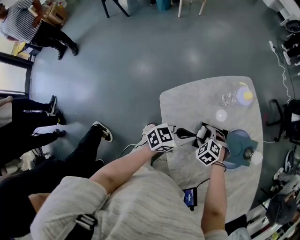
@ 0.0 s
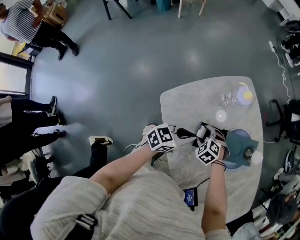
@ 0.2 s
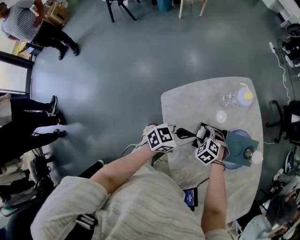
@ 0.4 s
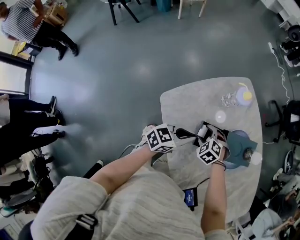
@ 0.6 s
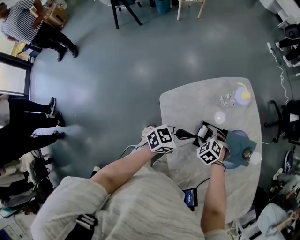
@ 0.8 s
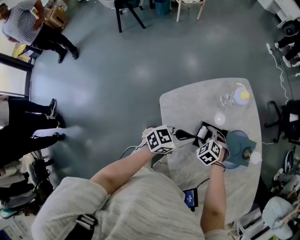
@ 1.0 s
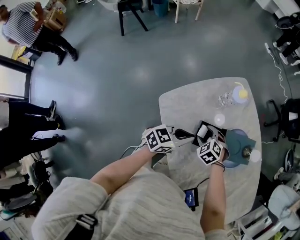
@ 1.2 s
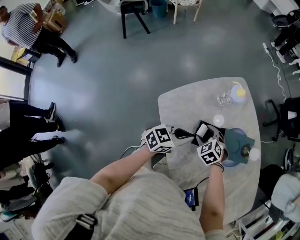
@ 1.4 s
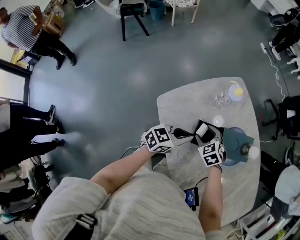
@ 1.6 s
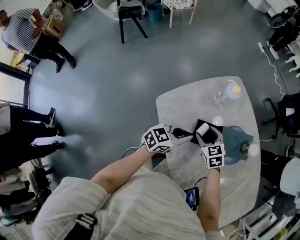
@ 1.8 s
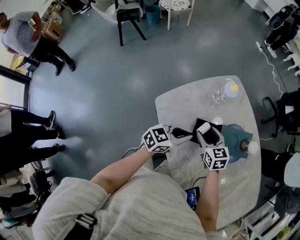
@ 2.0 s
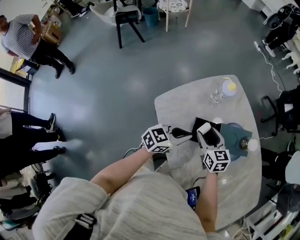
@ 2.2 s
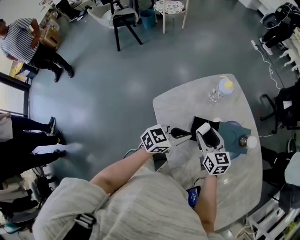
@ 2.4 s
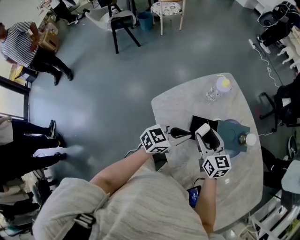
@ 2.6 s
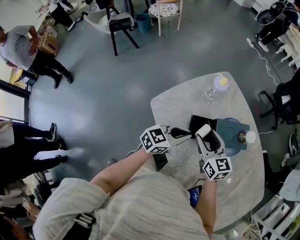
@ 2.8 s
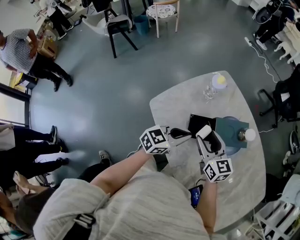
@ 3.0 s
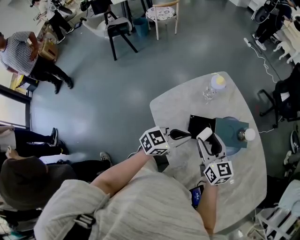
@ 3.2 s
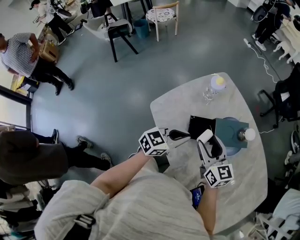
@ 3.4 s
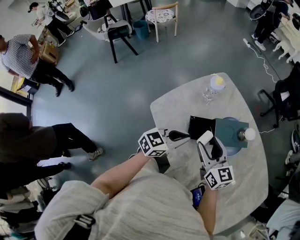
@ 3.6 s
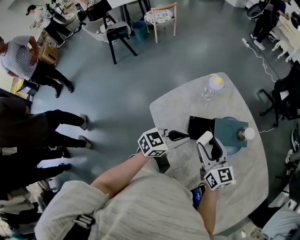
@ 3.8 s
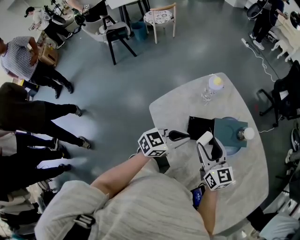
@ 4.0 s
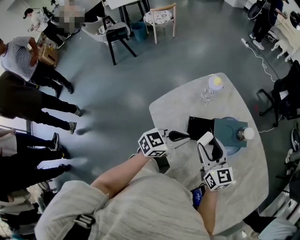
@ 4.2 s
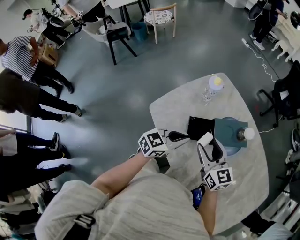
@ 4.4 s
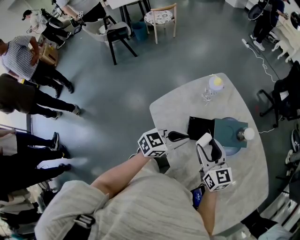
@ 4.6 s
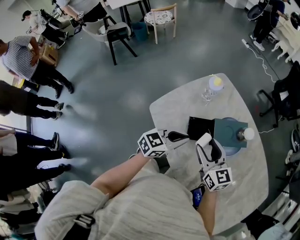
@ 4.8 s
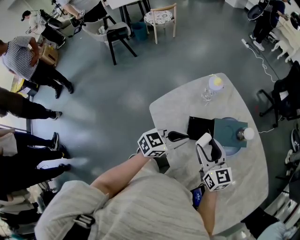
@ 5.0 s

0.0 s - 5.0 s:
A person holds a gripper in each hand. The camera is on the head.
0.0 s - 1.6 s: The right gripper heads upward, covering some 5 cm, and rotates about 30 degrees.
1.6 s - 3.4 s: The right gripper moves upward, roughly 15 cm, and points its fingers approximately 40 degrees further upward; the left gripper travels upward by approximately 5 cm.
3.4 s - 5.0 s: There are only small adjustments of the grippers.

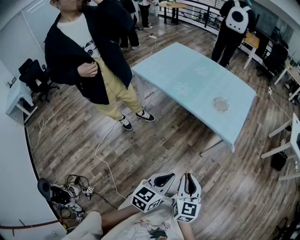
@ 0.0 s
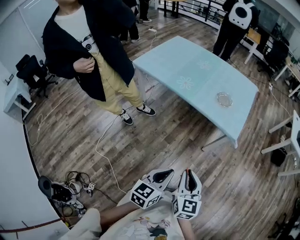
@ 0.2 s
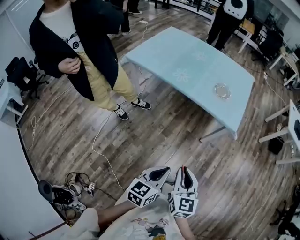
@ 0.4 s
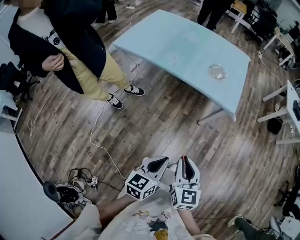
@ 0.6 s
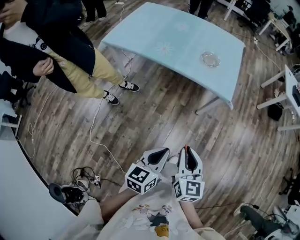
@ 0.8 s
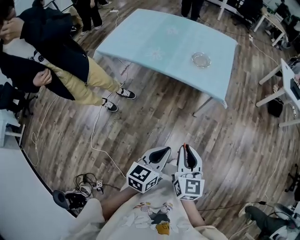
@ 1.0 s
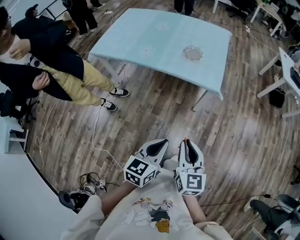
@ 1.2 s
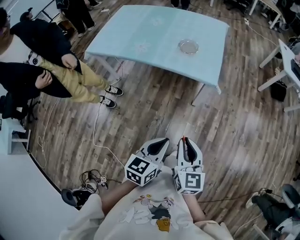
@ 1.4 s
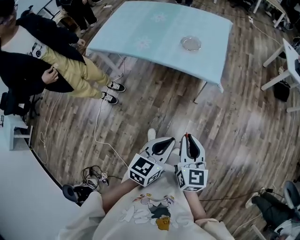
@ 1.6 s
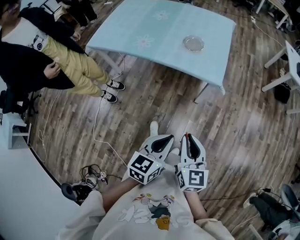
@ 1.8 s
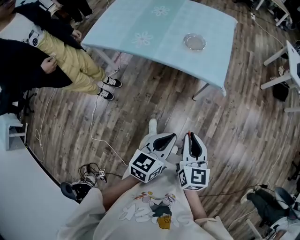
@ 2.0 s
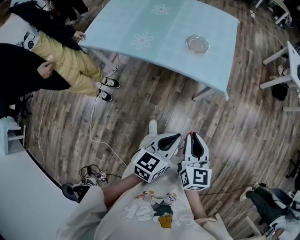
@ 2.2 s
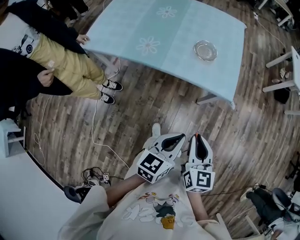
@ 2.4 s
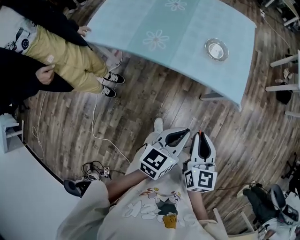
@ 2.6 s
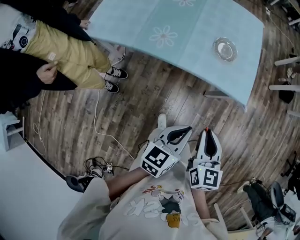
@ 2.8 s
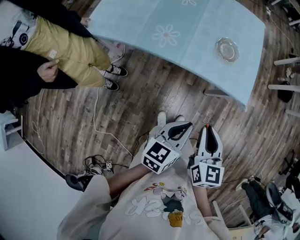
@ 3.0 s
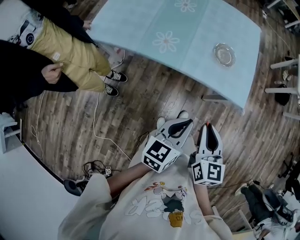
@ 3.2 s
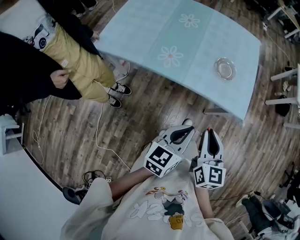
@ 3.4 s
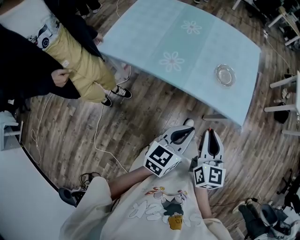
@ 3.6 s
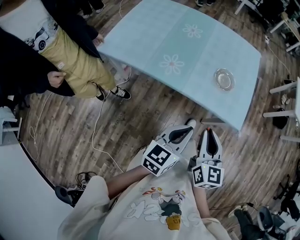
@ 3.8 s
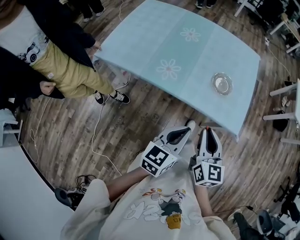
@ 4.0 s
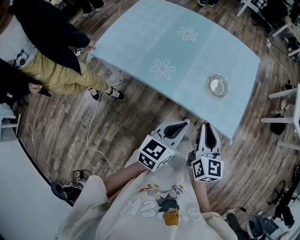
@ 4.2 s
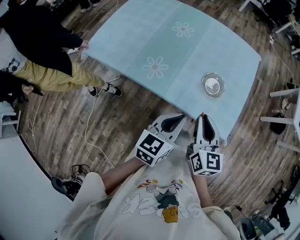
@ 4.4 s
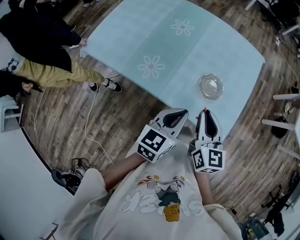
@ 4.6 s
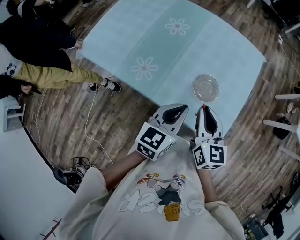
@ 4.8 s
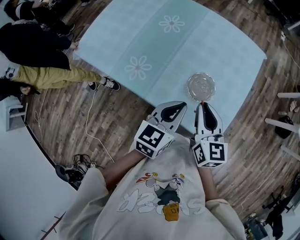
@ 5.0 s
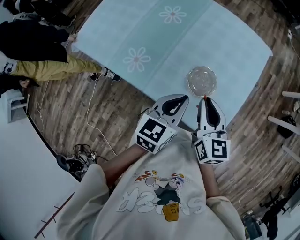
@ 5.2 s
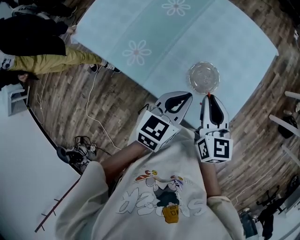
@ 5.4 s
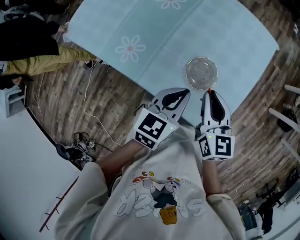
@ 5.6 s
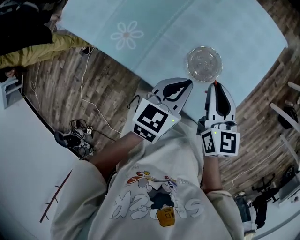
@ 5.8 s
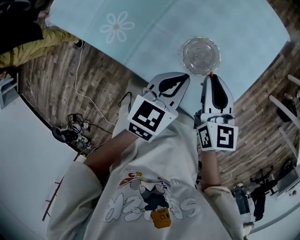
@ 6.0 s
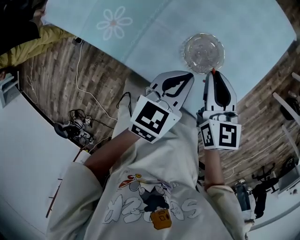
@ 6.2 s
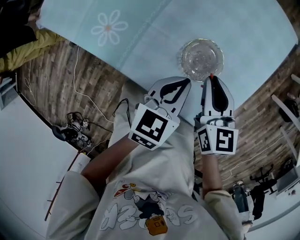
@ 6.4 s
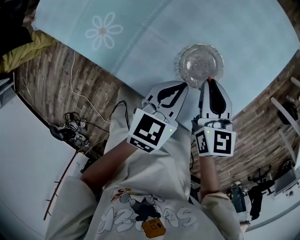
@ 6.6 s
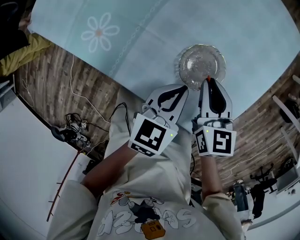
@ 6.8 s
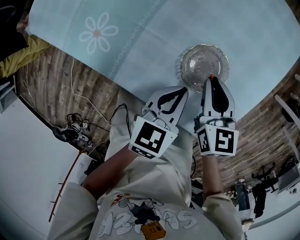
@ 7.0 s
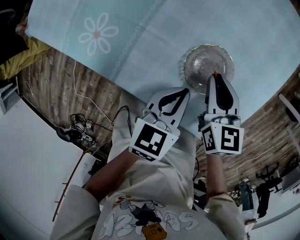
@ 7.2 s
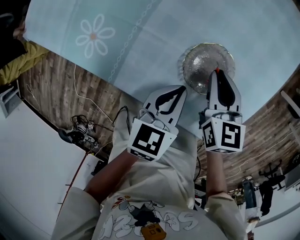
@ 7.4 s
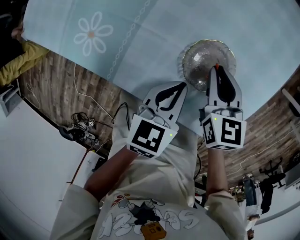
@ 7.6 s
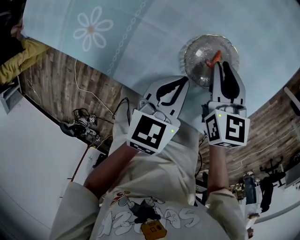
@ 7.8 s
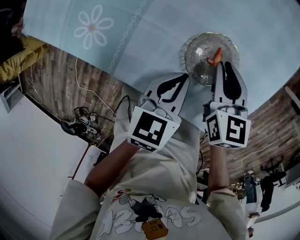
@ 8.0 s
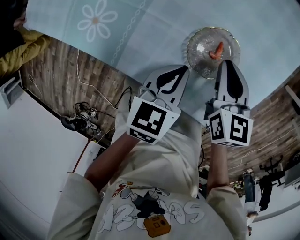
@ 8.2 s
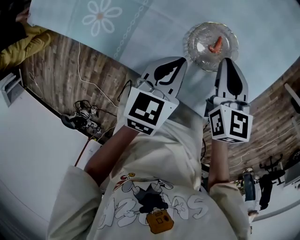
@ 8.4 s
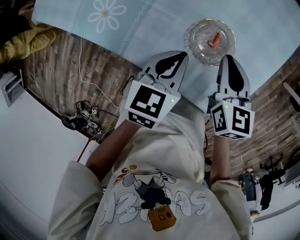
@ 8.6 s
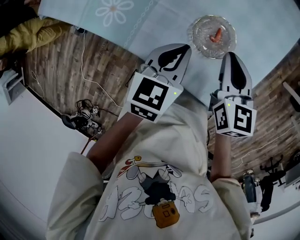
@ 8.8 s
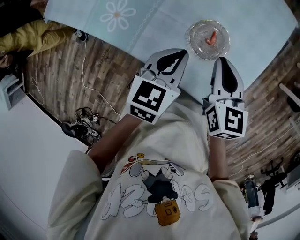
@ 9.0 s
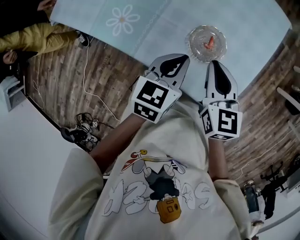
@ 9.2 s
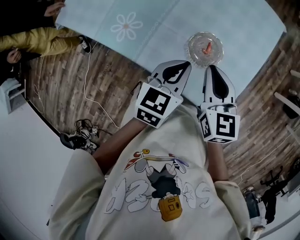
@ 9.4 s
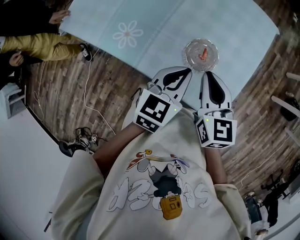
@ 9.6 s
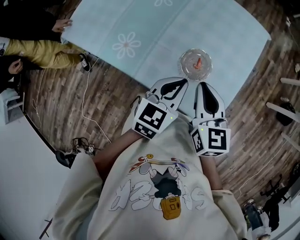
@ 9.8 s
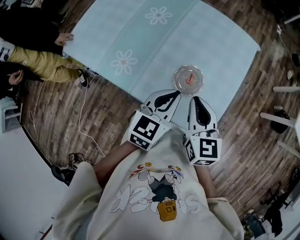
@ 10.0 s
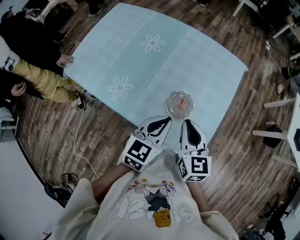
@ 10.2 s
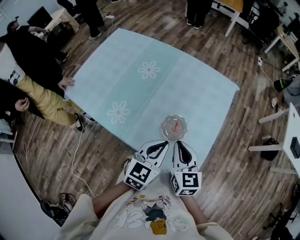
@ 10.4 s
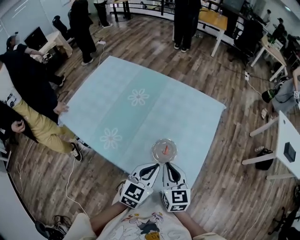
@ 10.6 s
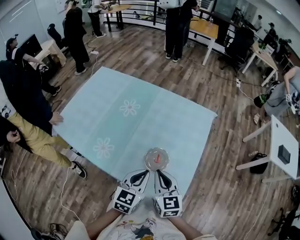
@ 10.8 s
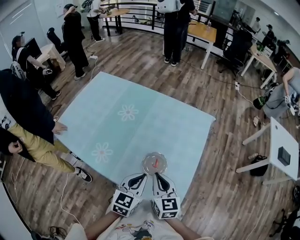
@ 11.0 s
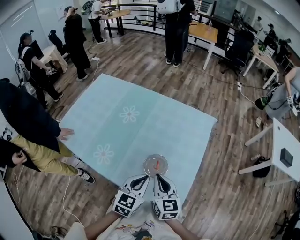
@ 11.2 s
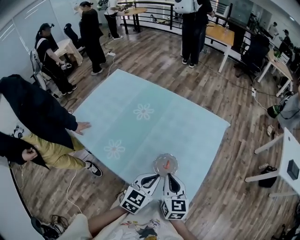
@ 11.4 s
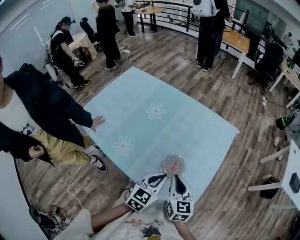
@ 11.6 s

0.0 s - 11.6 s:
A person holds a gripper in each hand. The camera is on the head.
0.0 s - 1.4 s: The left gripper heads to the right and forward, covering some 10 cm. Meanwhile the right gripper shifts roughly 10 cm to the right.
1.4 s - 2.8 s: Both grippers travel together forward and to the left, approximately 30 cm.
2.8 s - 4.4 s: The grippers both shift forward by about 20 cm.
4.4 s - 5.8 s: The two grippers go roughly 25 cm forward, to the right and downward.
5.8 s - 7.2 s: The two grippers go some 15 cm downward.
7.2 s - 8.8 s: The two grippers go roughly 5 cm upward.
8.8 s - 10.2 s: The left gripper travels upward by roughly 15 cm. The right gripper is displaced upward and backward by about 15 cm.
10.2 s - 11.6 s: The grippers make only small movements.

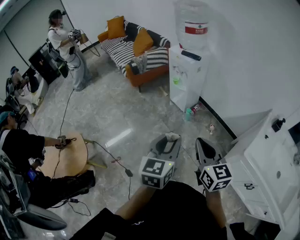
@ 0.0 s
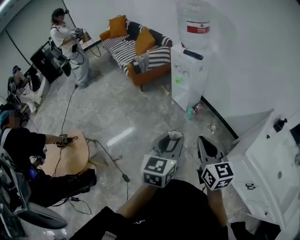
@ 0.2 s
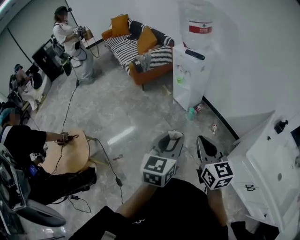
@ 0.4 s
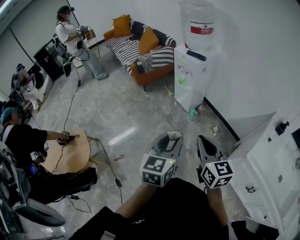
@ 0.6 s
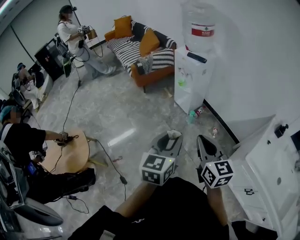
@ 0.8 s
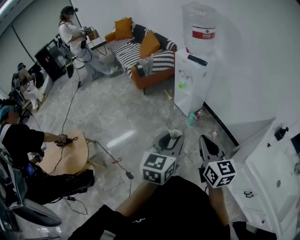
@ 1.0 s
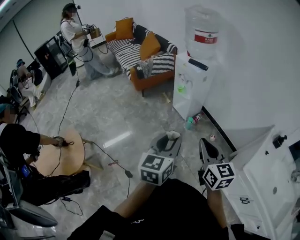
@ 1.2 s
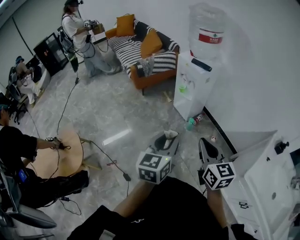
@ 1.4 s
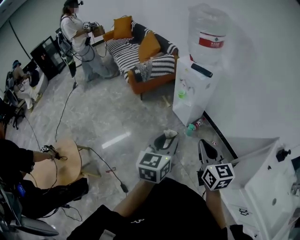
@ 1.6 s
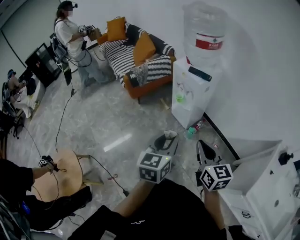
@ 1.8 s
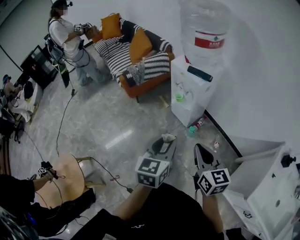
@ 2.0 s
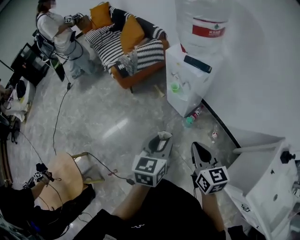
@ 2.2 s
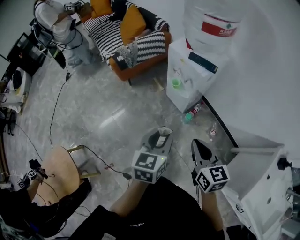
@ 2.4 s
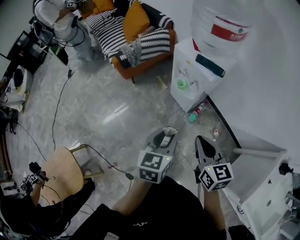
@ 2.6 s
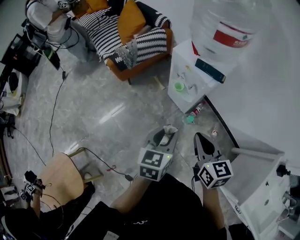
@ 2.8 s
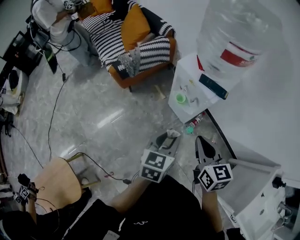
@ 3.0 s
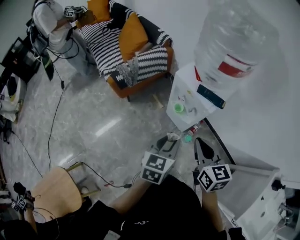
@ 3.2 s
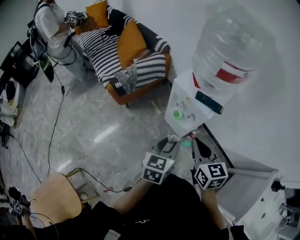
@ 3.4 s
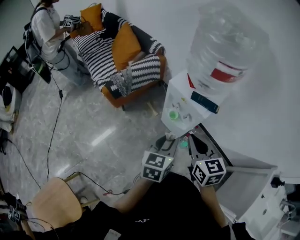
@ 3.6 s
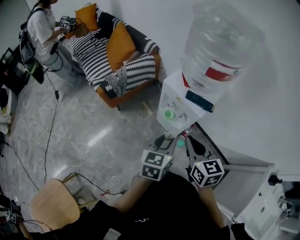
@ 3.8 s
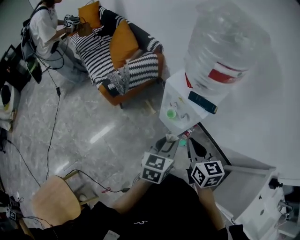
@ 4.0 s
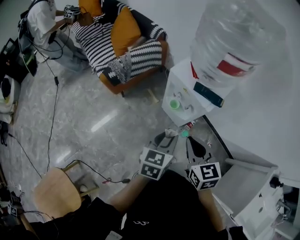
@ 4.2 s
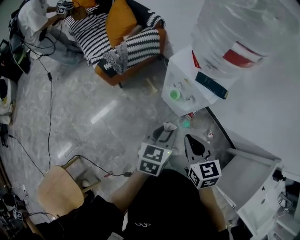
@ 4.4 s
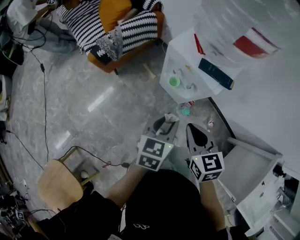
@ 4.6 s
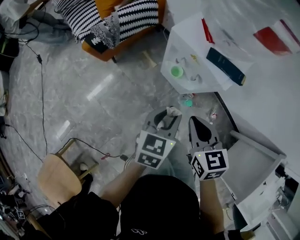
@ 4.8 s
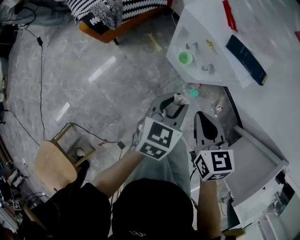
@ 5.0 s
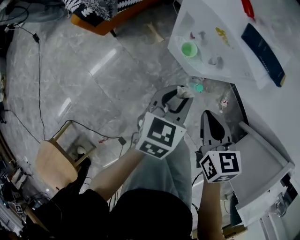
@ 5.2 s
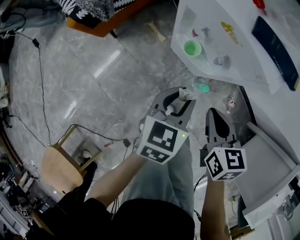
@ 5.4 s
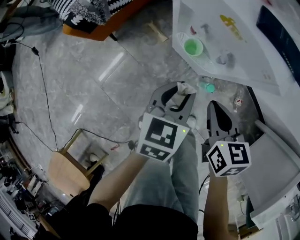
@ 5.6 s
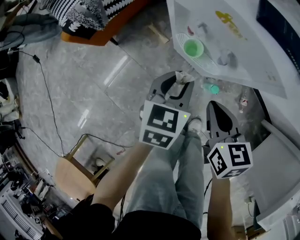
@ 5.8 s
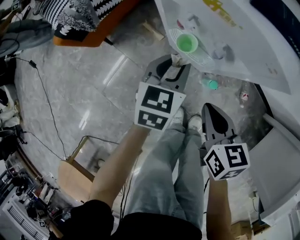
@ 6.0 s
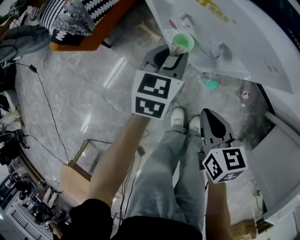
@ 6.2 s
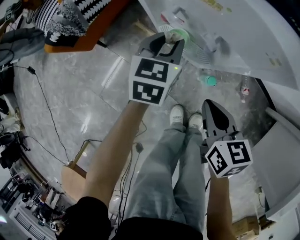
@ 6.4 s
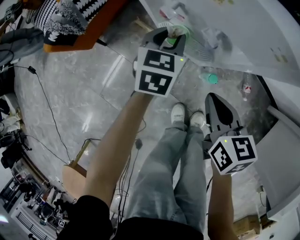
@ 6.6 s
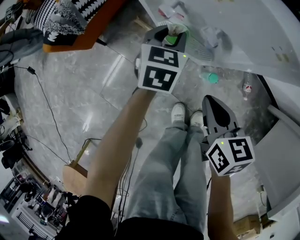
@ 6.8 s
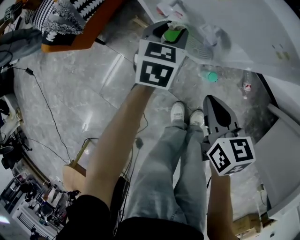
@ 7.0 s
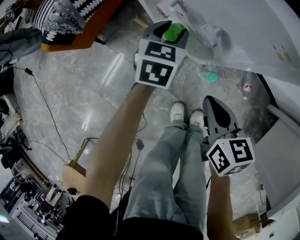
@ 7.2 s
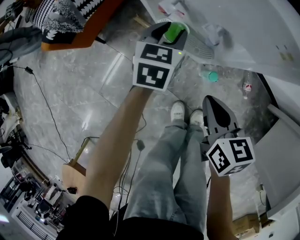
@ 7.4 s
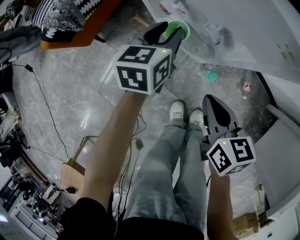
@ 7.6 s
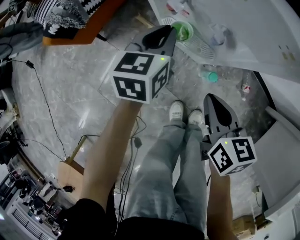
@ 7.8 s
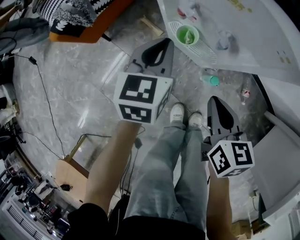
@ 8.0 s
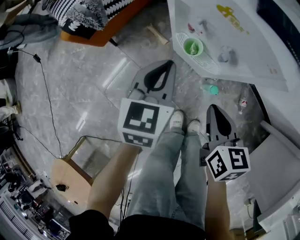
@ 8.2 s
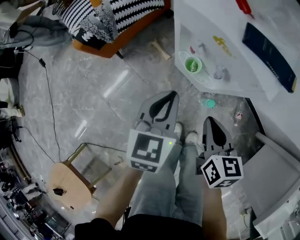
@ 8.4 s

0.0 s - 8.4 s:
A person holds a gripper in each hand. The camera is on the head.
0.0 s - 1.4 s: The grippers both shift forward by about 10 cm.
1.4 s - 2.8 s: The two grippers go about 35 cm forward.
2.8 s - 4.2 s: The two grippers go about 10 cm forward.
4.2 s - 5.6 s: The two grippers go roughly 25 cm downward. The right gripper swivels some 20 degrees.
5.6 s - 7.0 s: The right gripper goes roughly 5 cm downward. The left gripper heads forward and downward, covering roughly 20 cm.
7.0 s - 8.4 s: The right gripper goes about 10 cm upward. Meanwhile the left gripper moves upward, backward and to the left, some 20 cm, and closes.
